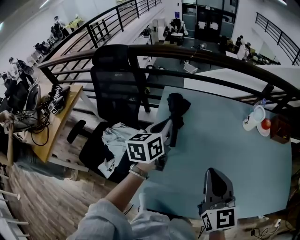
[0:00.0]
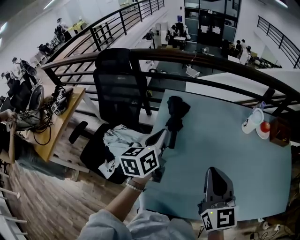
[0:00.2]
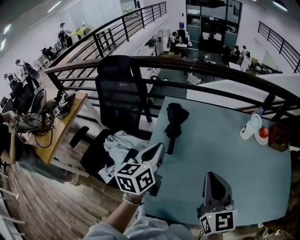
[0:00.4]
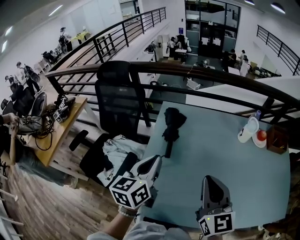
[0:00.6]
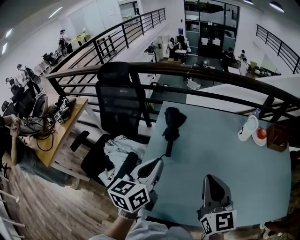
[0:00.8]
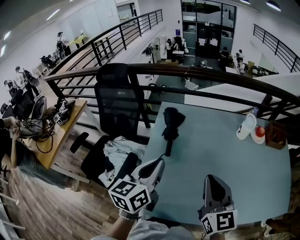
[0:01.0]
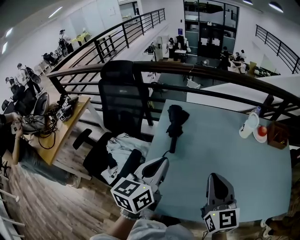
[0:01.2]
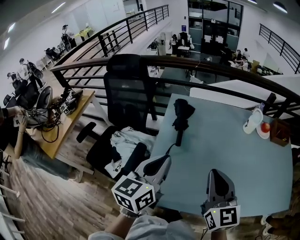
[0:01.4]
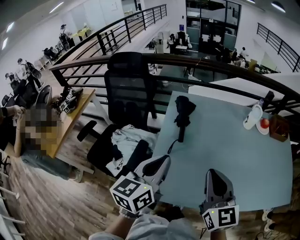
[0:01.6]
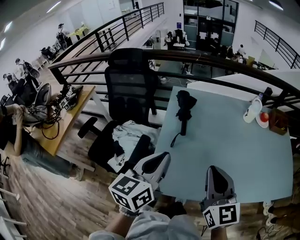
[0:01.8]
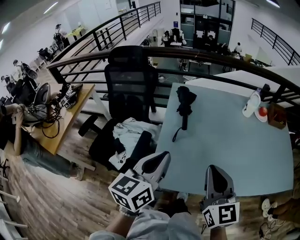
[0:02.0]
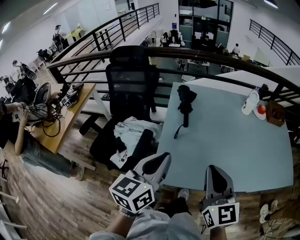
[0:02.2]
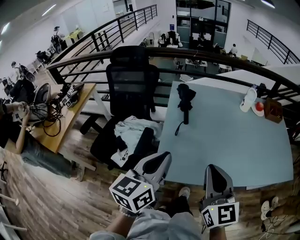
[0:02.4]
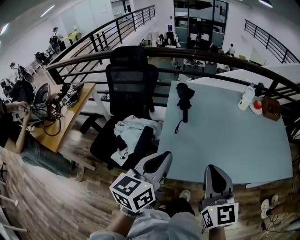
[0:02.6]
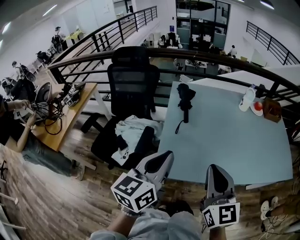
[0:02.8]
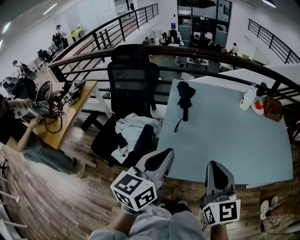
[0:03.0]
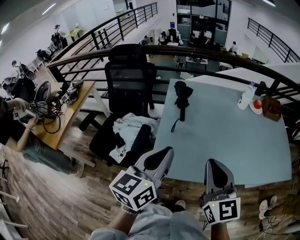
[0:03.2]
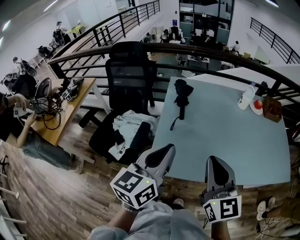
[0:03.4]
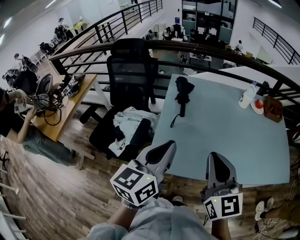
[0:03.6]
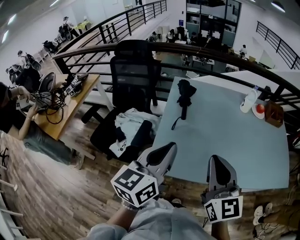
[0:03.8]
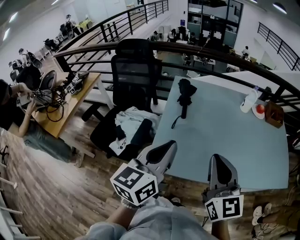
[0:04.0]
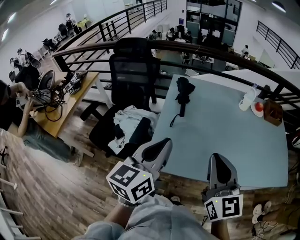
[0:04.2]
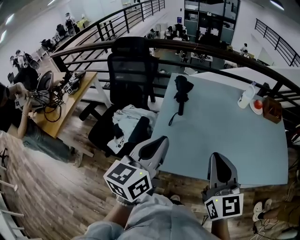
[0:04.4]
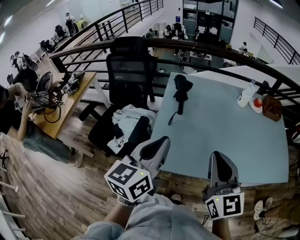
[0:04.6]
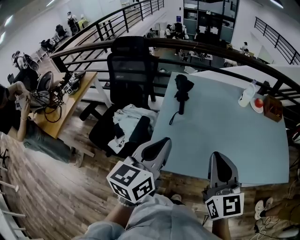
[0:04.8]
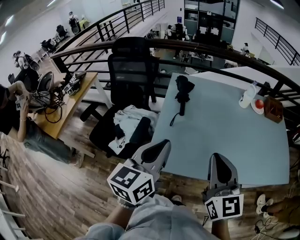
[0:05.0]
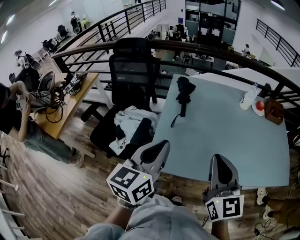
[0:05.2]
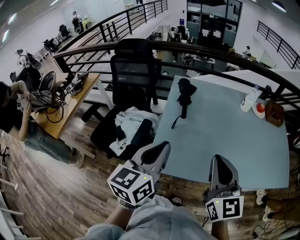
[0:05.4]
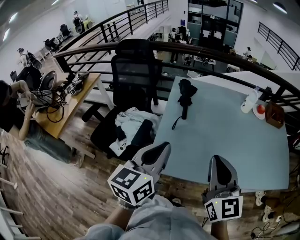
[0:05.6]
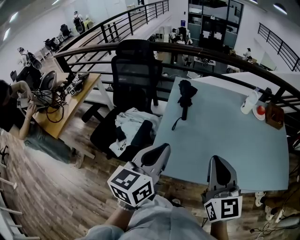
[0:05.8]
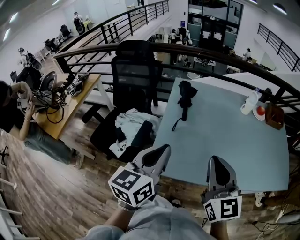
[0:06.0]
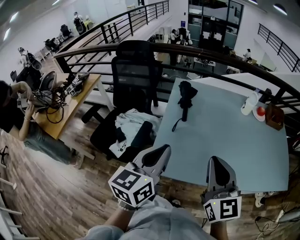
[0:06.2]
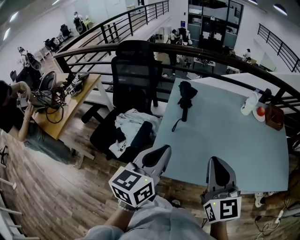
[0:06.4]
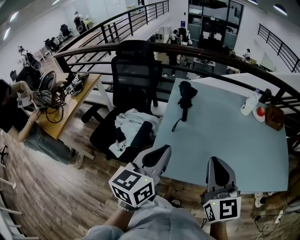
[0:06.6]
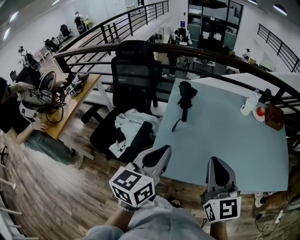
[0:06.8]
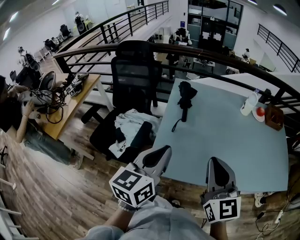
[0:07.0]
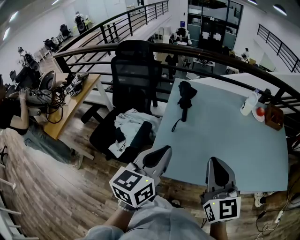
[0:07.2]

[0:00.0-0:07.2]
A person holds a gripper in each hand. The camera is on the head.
0:00.0 to 0:01.4: The right gripper travels backward by some 5 cm. The left gripper shifts about 20 cm backward.
0:01.4 to 0:02.8: Both grippers move backward, some 15 cm.
0:02.8 to 0:04.4: The right gripper goes approximately 5 cm to the right.
0:04.4 to 0:05.8: There are only small adjustments of the grippers.
0:05.8 to 0:07.2: Both grippers stay put.

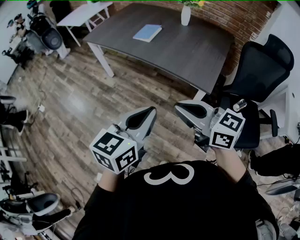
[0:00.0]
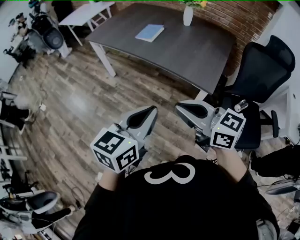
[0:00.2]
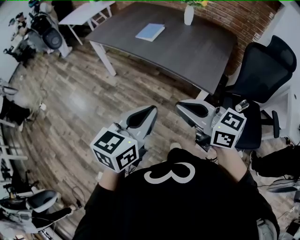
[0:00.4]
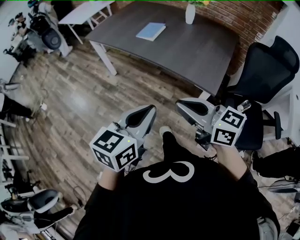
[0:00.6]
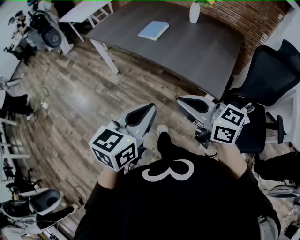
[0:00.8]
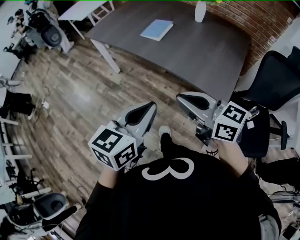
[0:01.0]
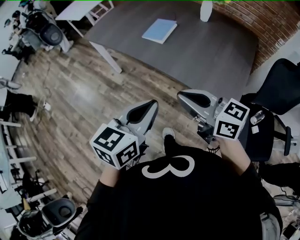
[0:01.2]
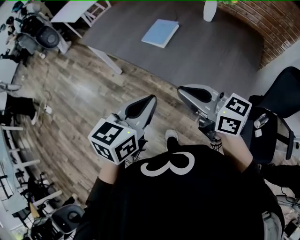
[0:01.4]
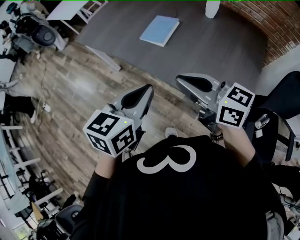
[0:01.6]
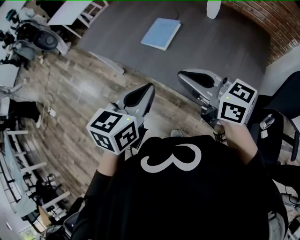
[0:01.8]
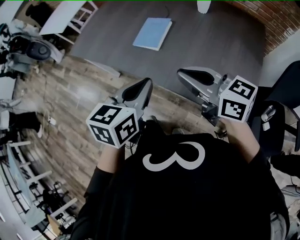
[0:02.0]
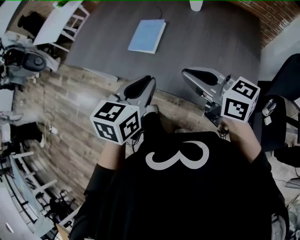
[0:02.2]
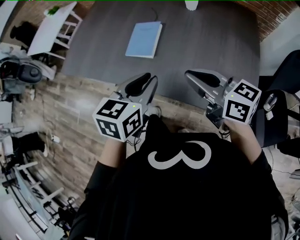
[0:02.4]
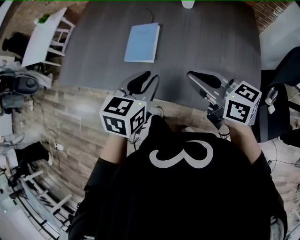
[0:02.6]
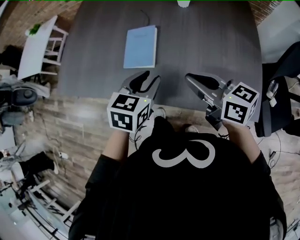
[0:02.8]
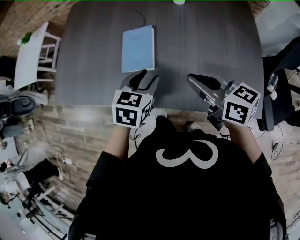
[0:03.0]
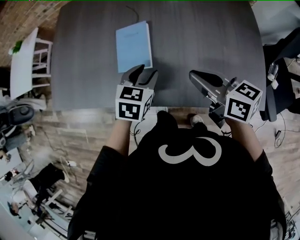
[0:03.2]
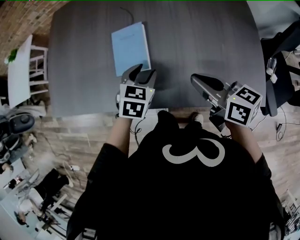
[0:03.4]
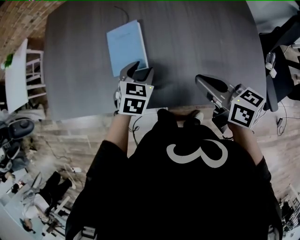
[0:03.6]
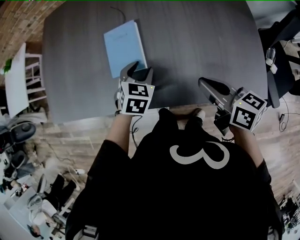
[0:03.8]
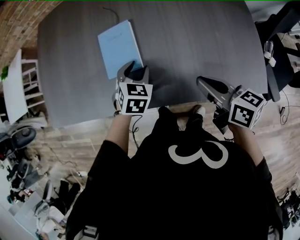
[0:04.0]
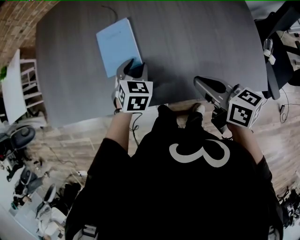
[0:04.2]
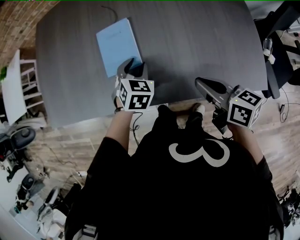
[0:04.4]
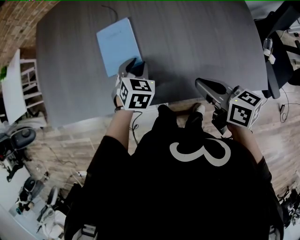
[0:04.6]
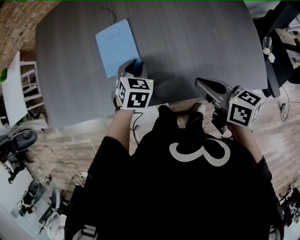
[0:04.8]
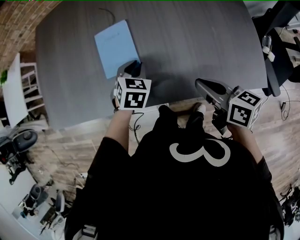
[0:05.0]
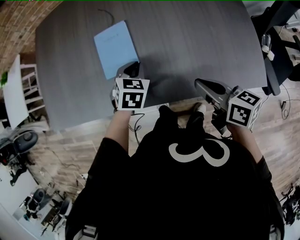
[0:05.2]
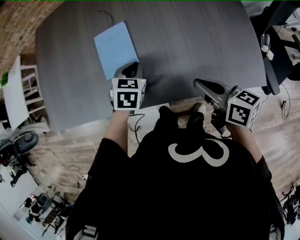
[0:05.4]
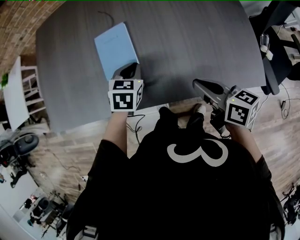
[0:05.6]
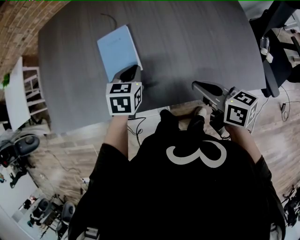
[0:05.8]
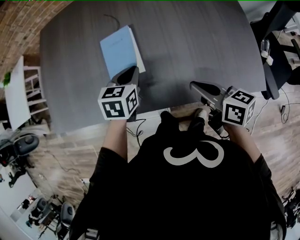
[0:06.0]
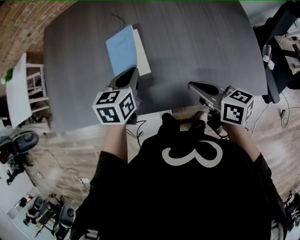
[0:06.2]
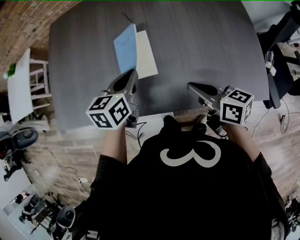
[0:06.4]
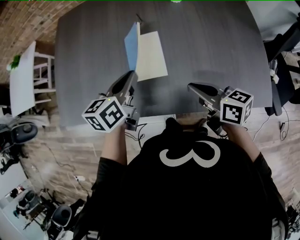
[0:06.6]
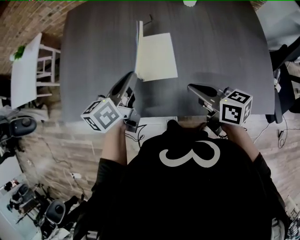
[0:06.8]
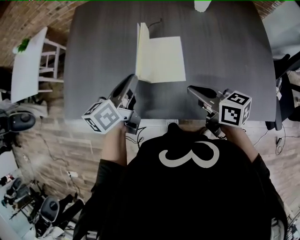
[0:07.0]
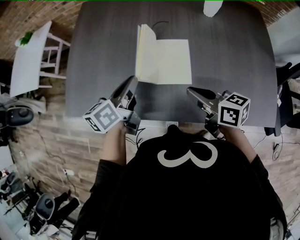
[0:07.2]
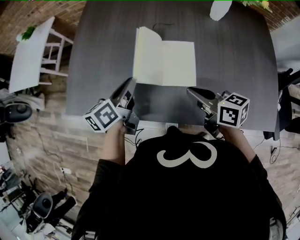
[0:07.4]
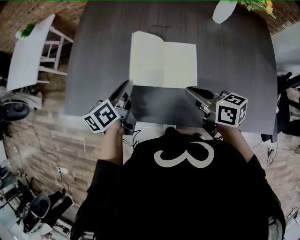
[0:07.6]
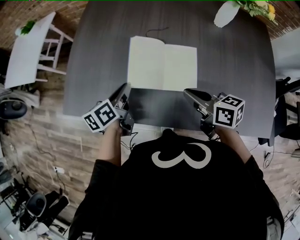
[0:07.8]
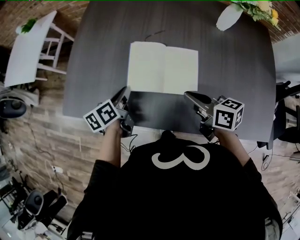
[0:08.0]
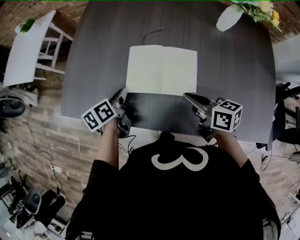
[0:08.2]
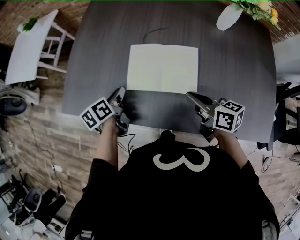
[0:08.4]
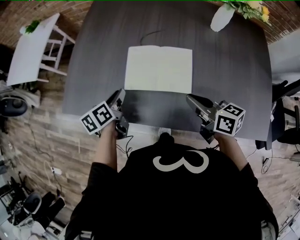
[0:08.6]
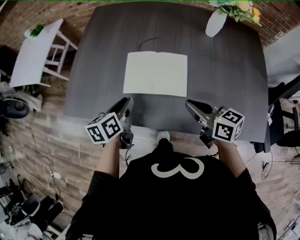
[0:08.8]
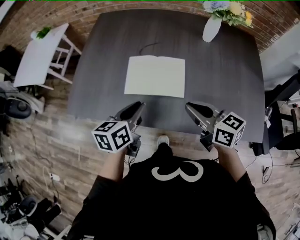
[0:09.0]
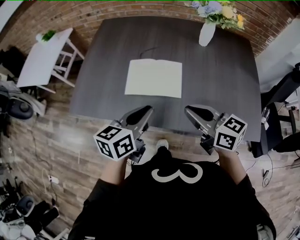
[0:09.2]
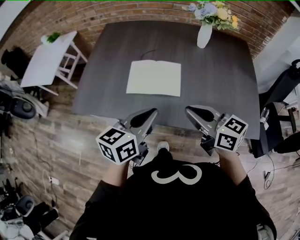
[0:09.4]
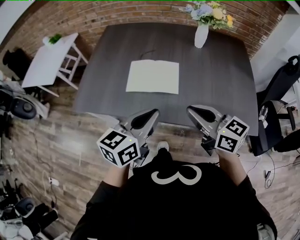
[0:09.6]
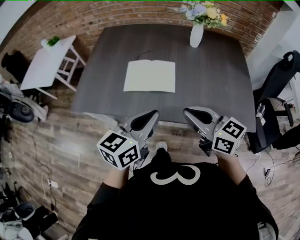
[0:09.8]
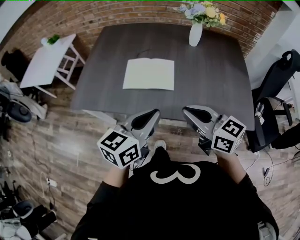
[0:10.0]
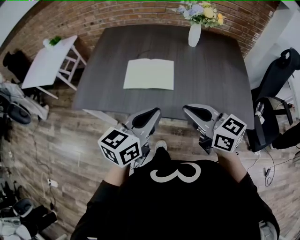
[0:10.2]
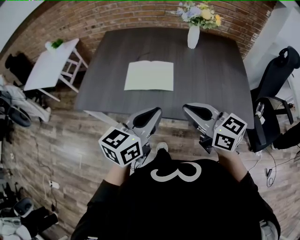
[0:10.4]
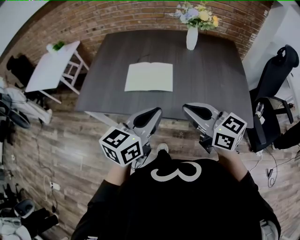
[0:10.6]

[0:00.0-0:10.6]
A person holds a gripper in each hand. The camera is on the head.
0:00.0 to 0:01.6: The grippers both shift forward by about 30 cm.
0:01.6 to 0:03.0: The right gripper travels forward and downward by approximately 15 cm, and changes its angle by roughly 40 degrees, while the left gripper heads forward and downward, covering roughly 25 cm, turns by some 30 degrees, and opens.
0:03.0 to 0:04.6: The left gripper moves downward and forward, roughly 10 cm, and turns by some 30 degrees, while the right gripper is displaced downward by about 10 cm, and turns by approximately 20 degrees.
0:04.6 to 0:06.0: The left gripper goes about 5 cm upward, turns by some 30 degrees, and closes.
0:06.0 to 0:07.6: The left gripper shifts approximately 25 cm to the left, and rotates around the line of its fingers by roughly 40 degrees, counterclockwise from behind, while the right gripper shifts about 20 cm to the left and forward.
0:07.6 to 0:09.0: The left gripper goes about 15 cm backward, upward and to the right. Meanwhile the right gripper heads upward and backward, covering some 10 cm.
0:09.0 to 0:10.6: The right gripper heads backward and upward, covering about 15 cm, while the left gripper travels backward, upward and to the right by roughly 25 cm, and rotates some 30 degrees.

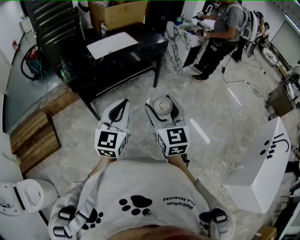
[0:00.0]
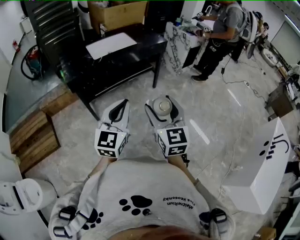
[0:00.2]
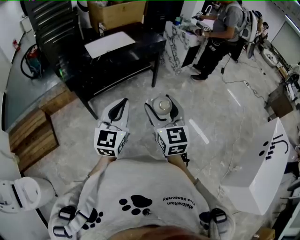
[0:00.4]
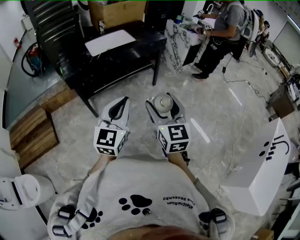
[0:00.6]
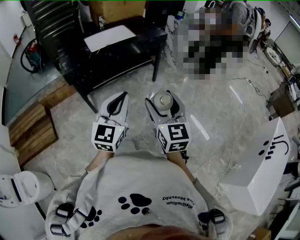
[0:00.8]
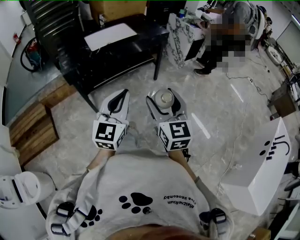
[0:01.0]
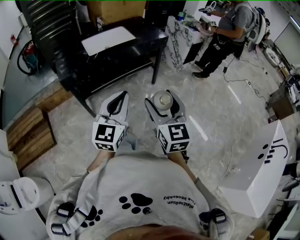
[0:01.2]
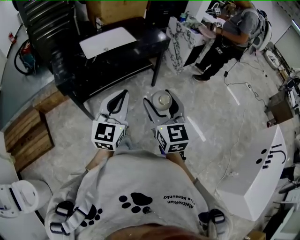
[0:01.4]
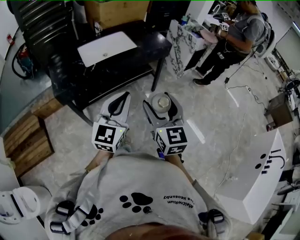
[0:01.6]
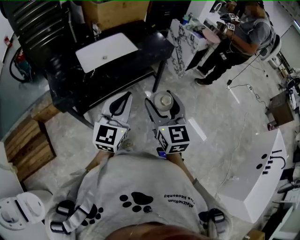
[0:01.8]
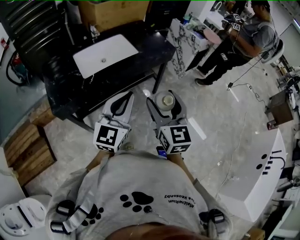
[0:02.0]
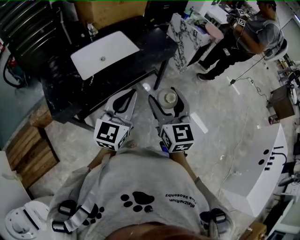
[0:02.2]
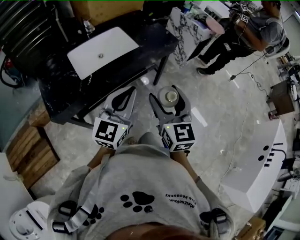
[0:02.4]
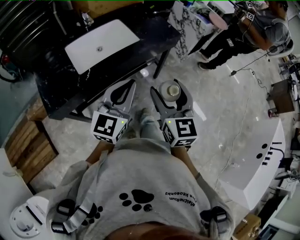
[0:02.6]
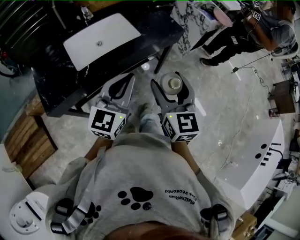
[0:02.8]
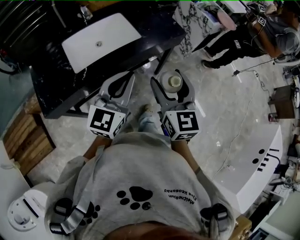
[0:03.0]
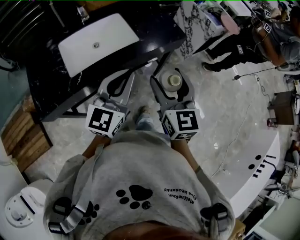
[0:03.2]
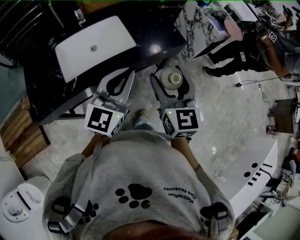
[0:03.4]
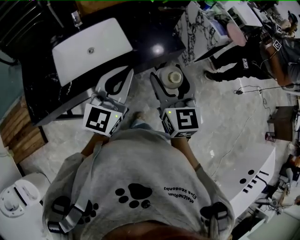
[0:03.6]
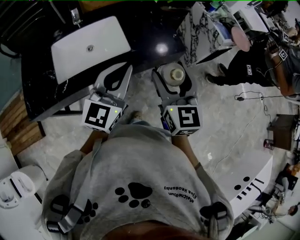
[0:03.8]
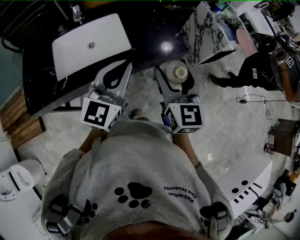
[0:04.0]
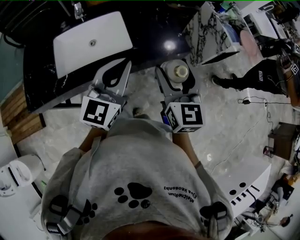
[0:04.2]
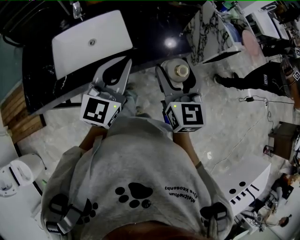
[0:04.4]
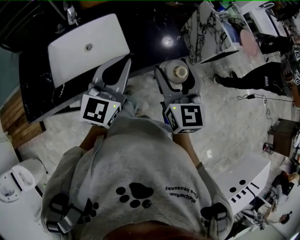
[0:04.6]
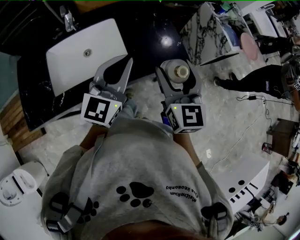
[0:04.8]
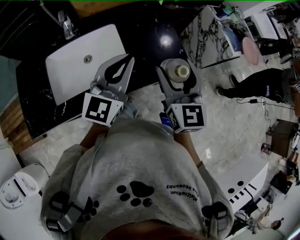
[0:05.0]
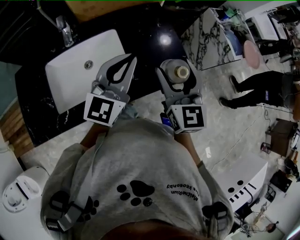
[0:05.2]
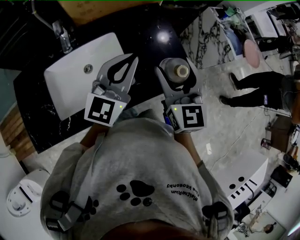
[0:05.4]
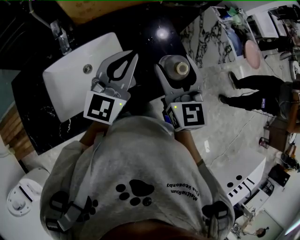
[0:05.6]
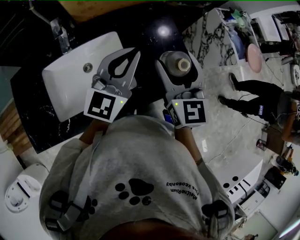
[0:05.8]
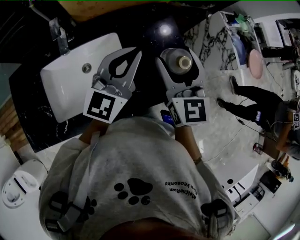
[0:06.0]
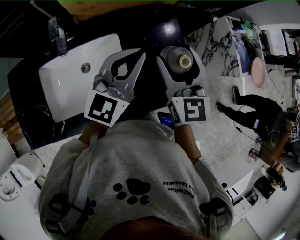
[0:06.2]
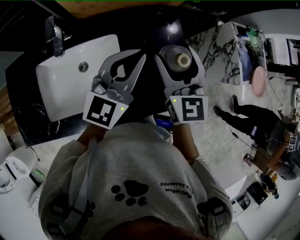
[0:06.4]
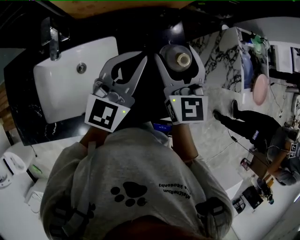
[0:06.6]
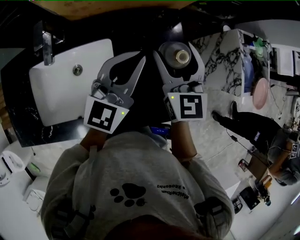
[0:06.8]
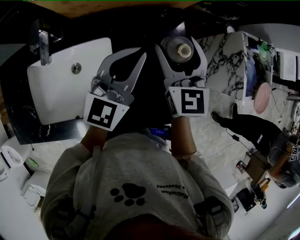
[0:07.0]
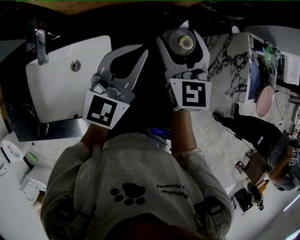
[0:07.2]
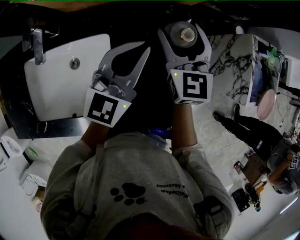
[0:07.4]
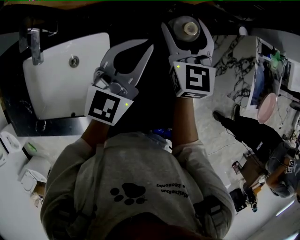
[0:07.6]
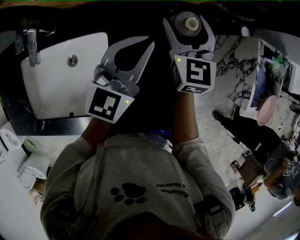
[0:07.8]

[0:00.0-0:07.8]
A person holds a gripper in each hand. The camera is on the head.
0:00.0 to 0:01.6: The two grippers go about 20 cm forward.
0:01.6 to 0:03.2: Both grippers travel together forward, about 30 cm.
0:03.2 to 0:04.6: The right gripper moves forward and to the right, about 20 cm. The left gripper shifts approximately 20 cm forward.
0:04.6 to 0:06.2: Both grippers travel together forward, about 25 cm.
0:06.2 to 0:07.8: Both grippers move forward and downward, some 20 cm.
